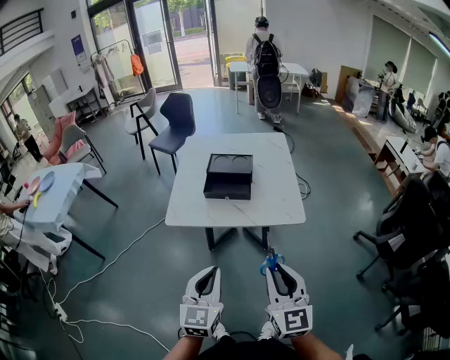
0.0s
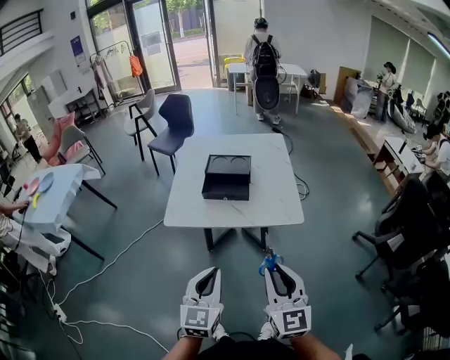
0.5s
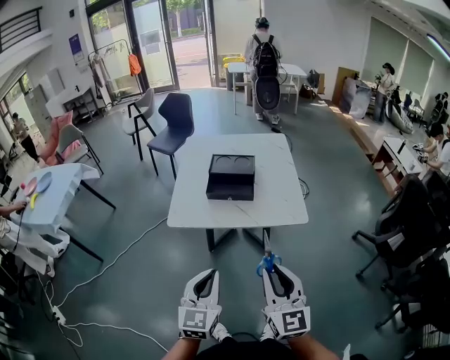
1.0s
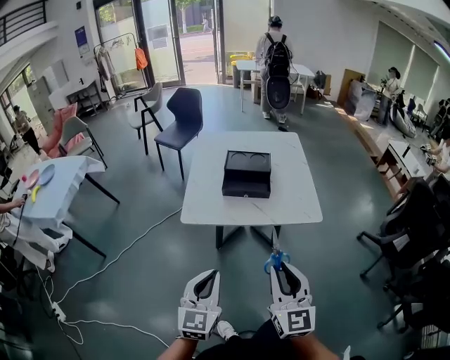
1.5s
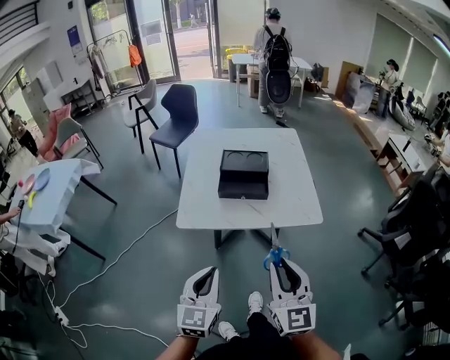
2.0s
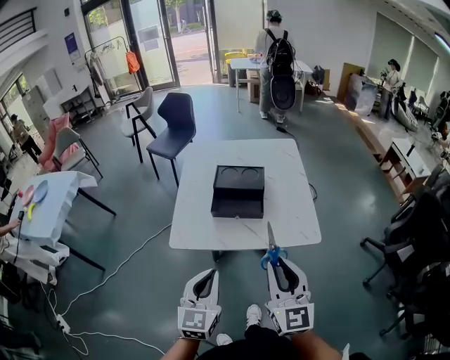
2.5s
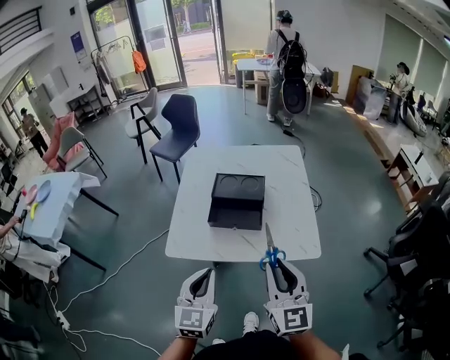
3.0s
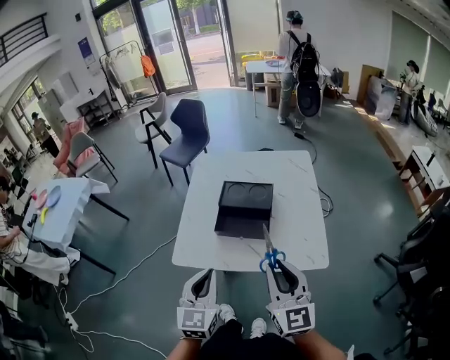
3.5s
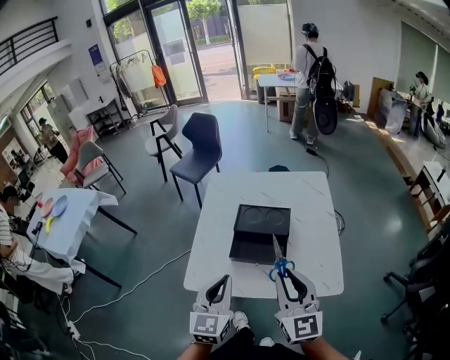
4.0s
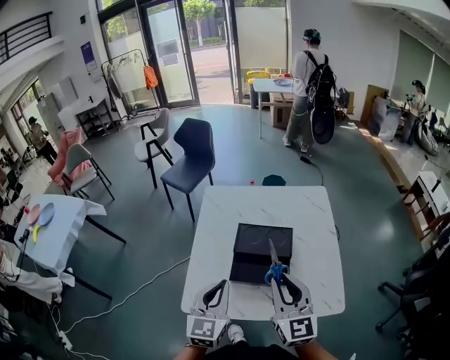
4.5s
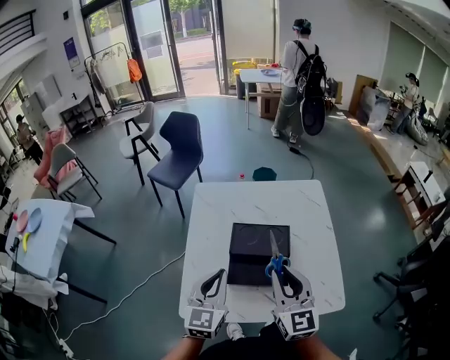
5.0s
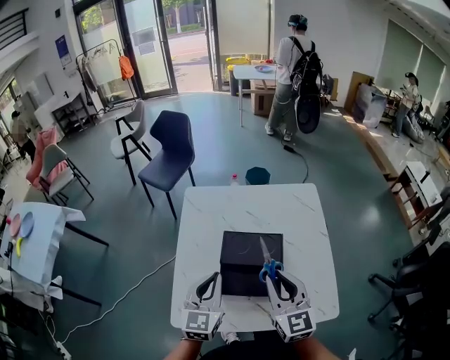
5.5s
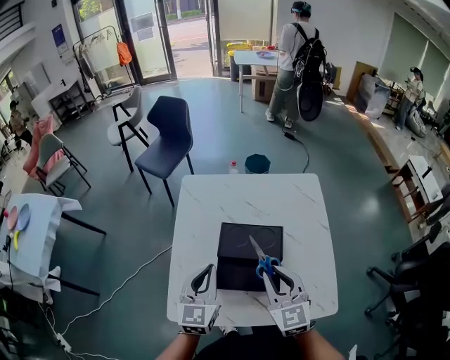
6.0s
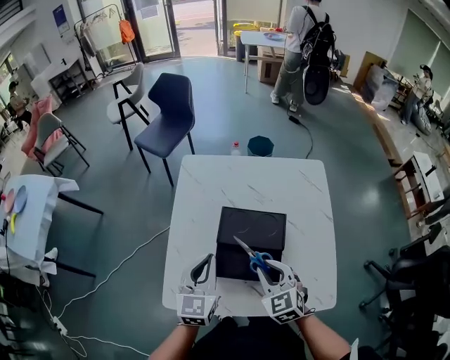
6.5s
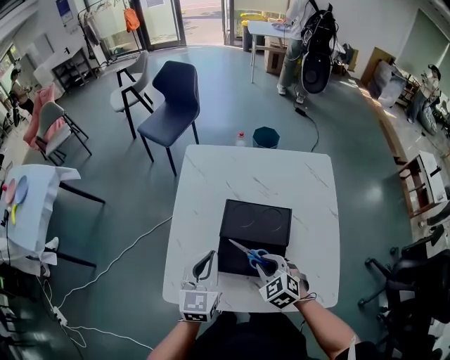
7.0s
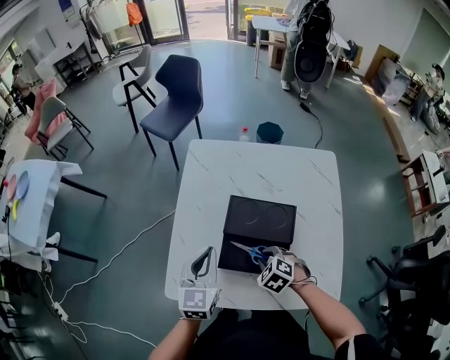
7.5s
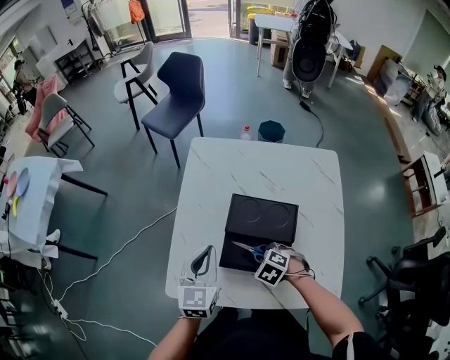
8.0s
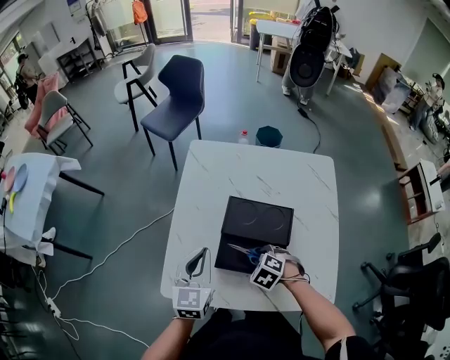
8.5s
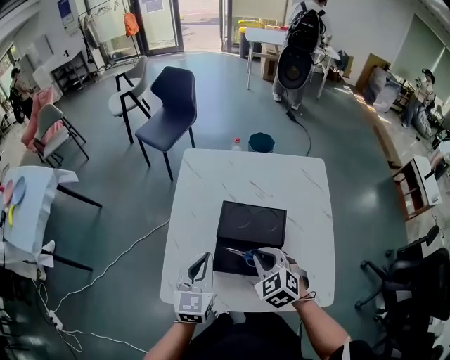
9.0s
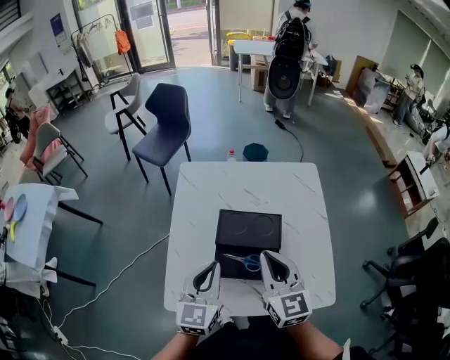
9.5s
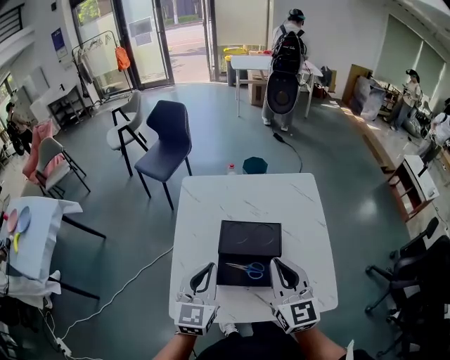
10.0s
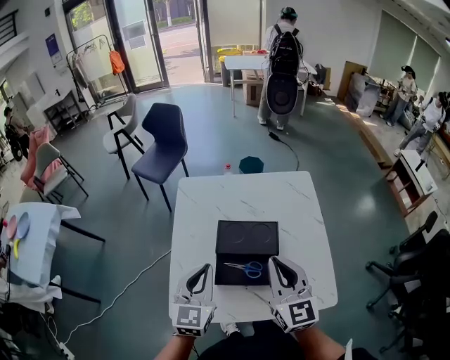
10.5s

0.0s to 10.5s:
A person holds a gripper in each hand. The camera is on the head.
0.0s to 2.0s: The two grippers go about 10 cm to the left.
2.0s to 4.0s: Both grippers move forward, about 25 cm.
4.0s to 6.5s: The left gripper is displaced forward by roughly 20 cm, while the right gripper moves forward and downward, about 25 cm, and tips its fingers downward by some 40 degrees.
6.5s to 8.5s: The right gripper heads downward, covering about 15 cm, and tips its fingers downward by roughly 40 degrees.
8.5s to 10.5s: The right gripper moves upward, about 30 cm, tilts its fingers about 70 degrees upward, and closes its fingers; the left gripper travels upward by roughly 10 cm.

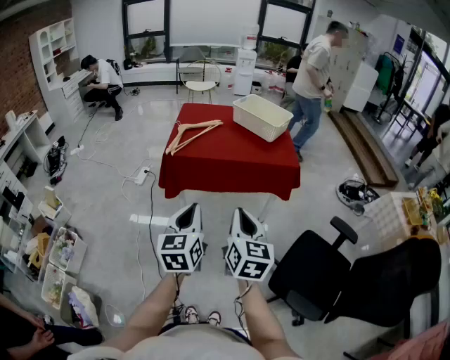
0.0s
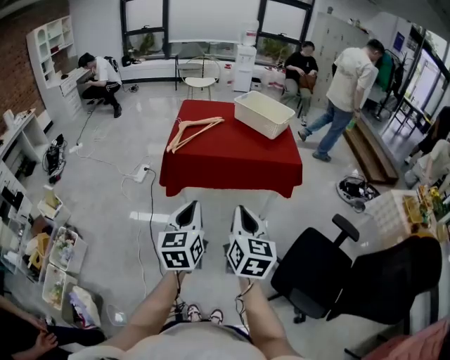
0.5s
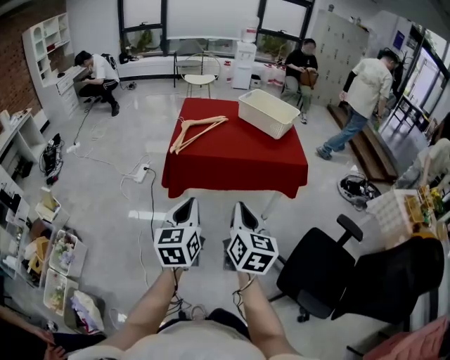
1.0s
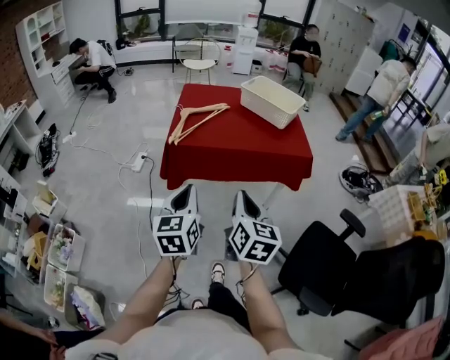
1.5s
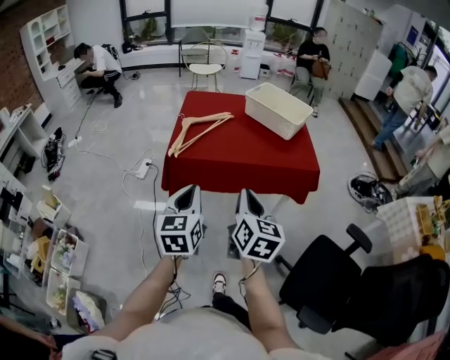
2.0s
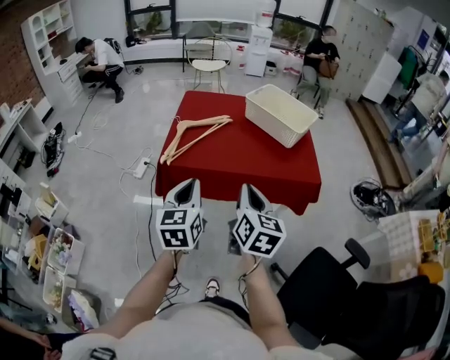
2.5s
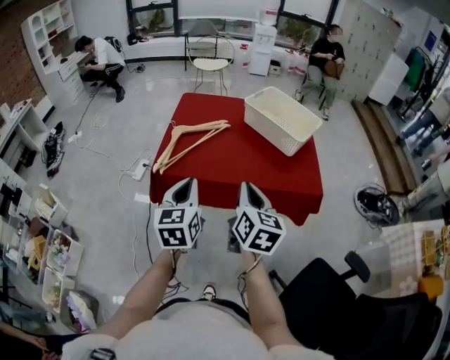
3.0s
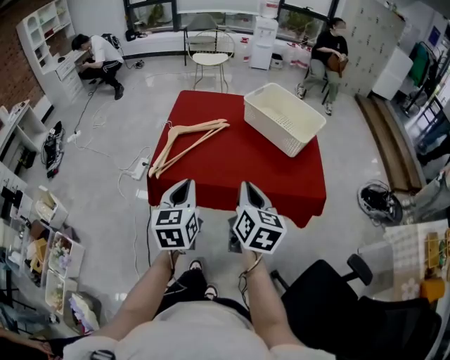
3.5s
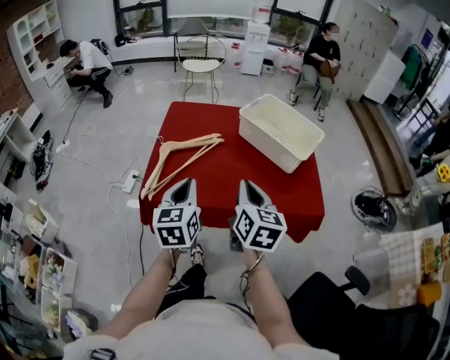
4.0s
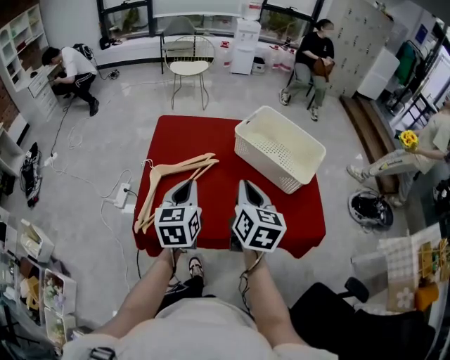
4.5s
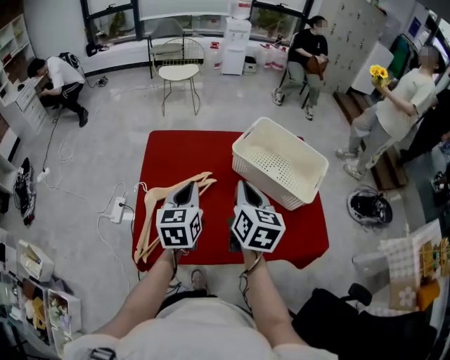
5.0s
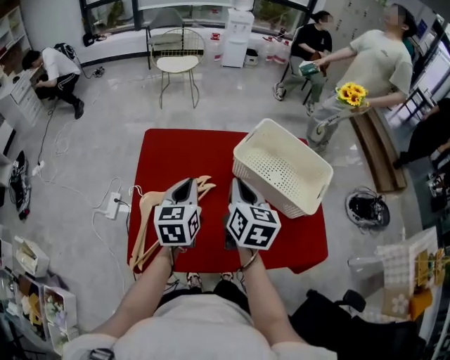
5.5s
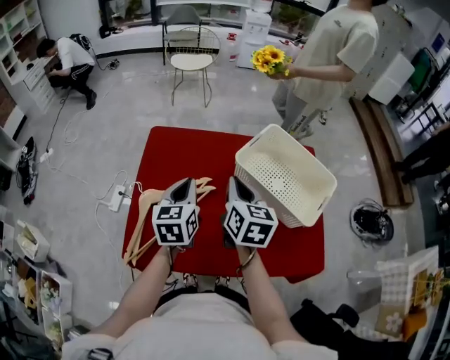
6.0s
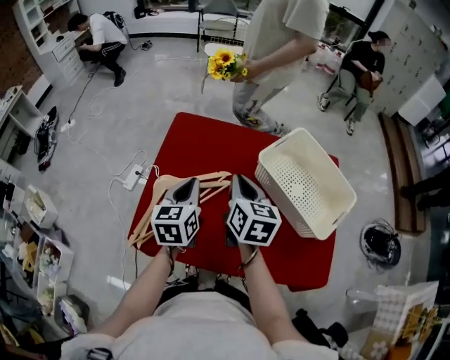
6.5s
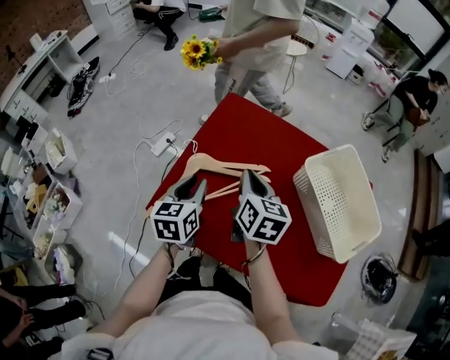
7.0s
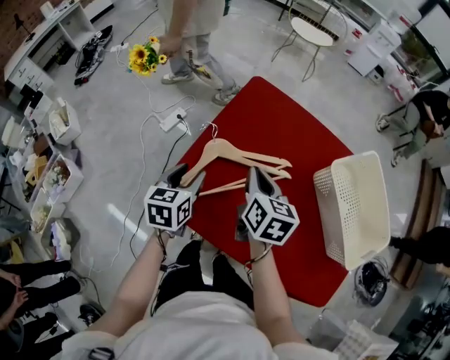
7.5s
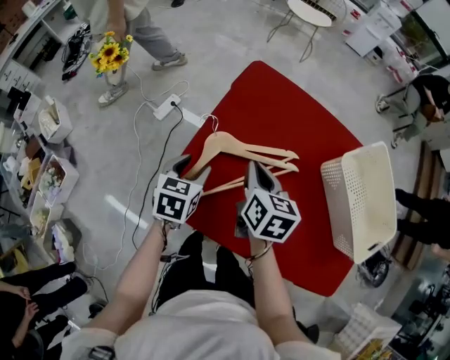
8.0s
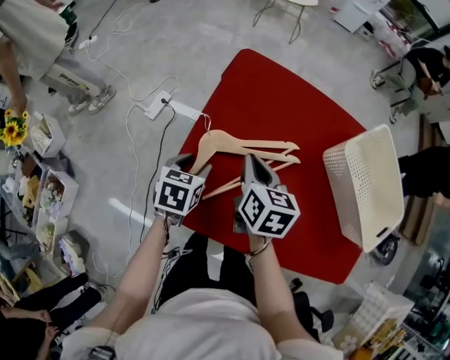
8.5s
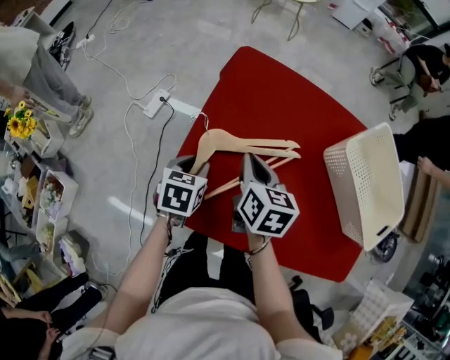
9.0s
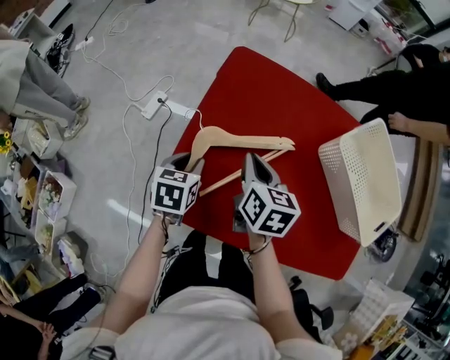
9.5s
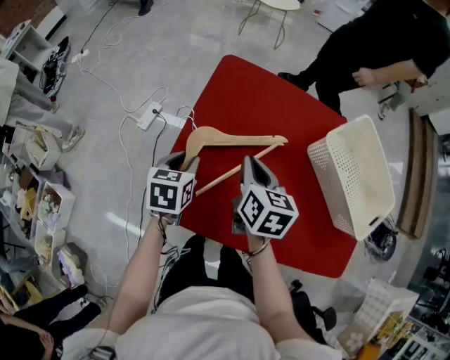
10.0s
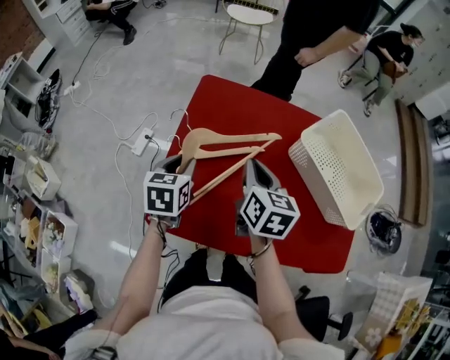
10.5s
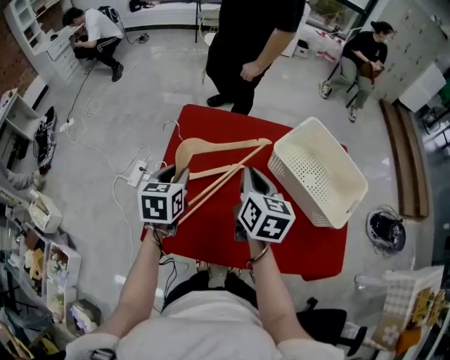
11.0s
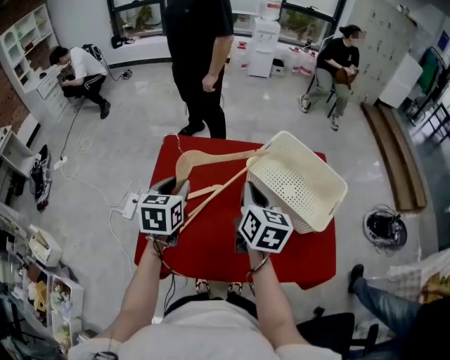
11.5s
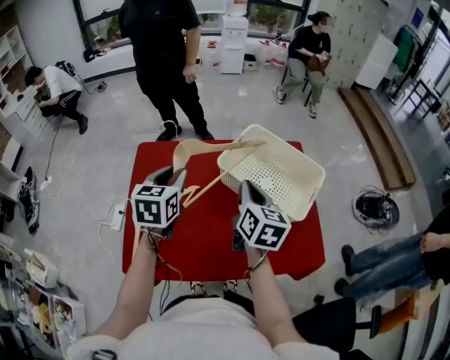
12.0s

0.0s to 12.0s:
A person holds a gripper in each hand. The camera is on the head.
0.0s to 2.0s: Both grippers travel together forward, approximately 20 cm.
2.0s to 4.0s: The two grippers go approximately 30 cm forward.
4.0s to 6.0s: The grippers both shift forward by about 30 cm.
6.0s to 8.0s: Both grippers move to the left and downward, some 25 cm. The left gripper swivels roughly 20 degrees, and opens up, while the right gripper swivels some 30 degrees.
8.0s to 10.0s: The left gripper closes its fingers.
10.0s to 12.0s: The two grippers go roughly 30 cm to the right and upward. The left gripper swivels roughly 30 degrees. The right gripper rotates about 30 degrees.

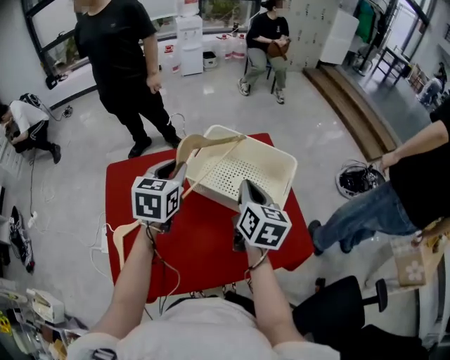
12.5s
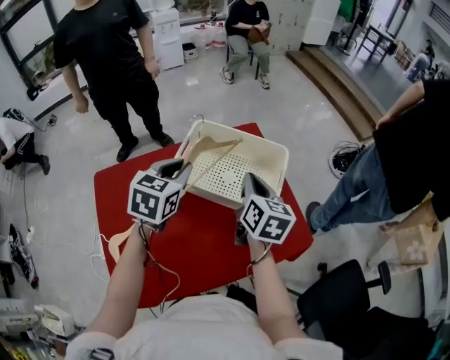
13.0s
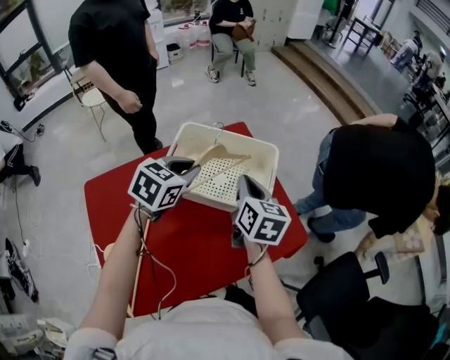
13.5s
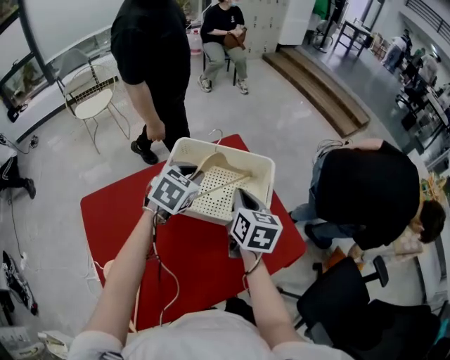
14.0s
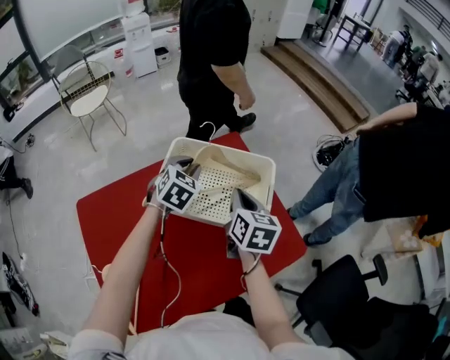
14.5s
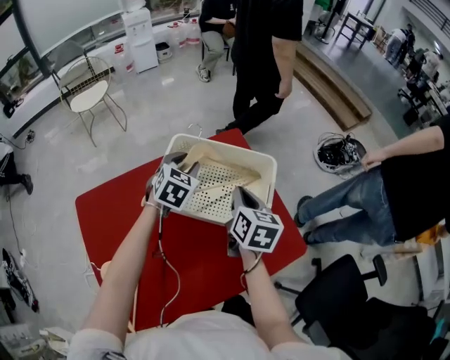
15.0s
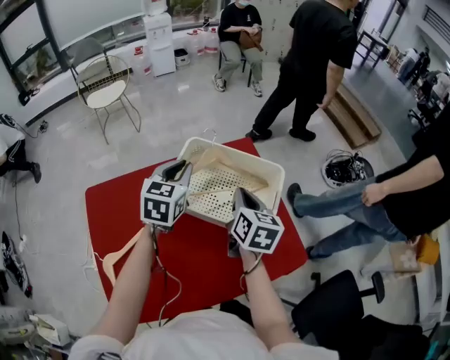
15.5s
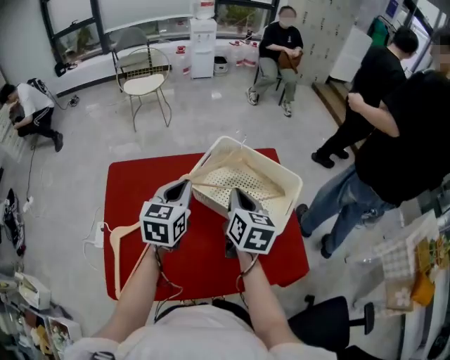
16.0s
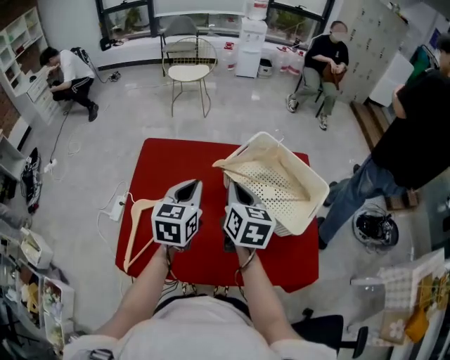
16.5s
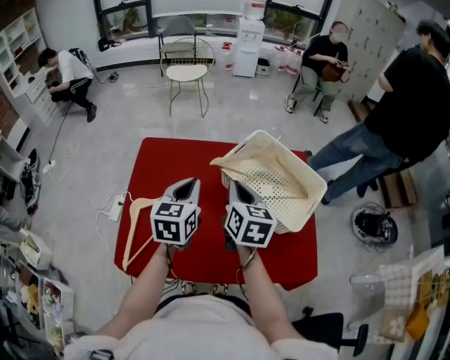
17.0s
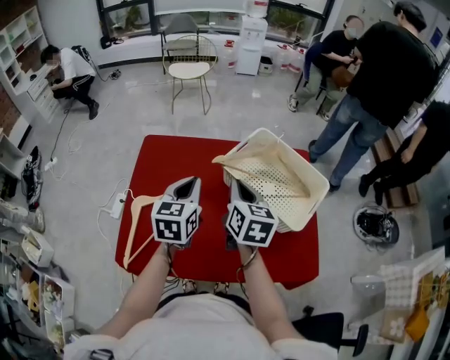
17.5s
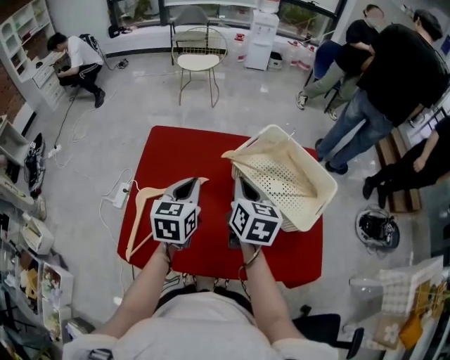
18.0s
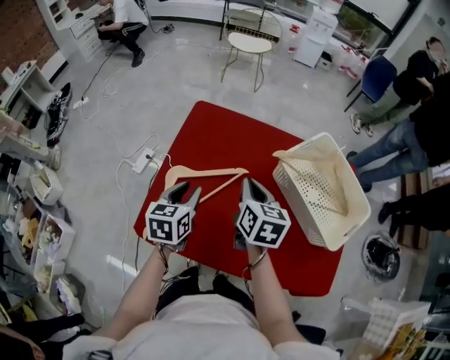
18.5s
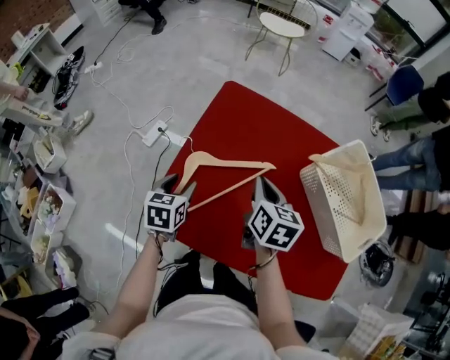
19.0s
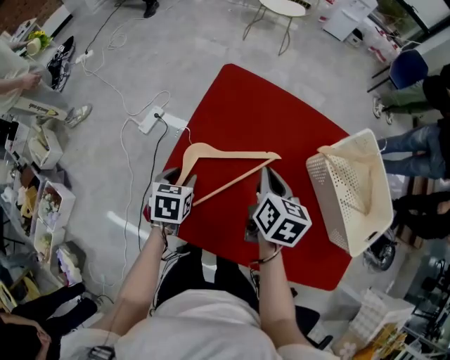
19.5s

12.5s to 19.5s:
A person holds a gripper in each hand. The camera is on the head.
12.5s to 14.5s: The left gripper goes roughly 25 cm forward, to the right and downward, and changes its angle by approximately 40 degrees, while the right gripper shifts approximately 10 cm forward and downward.
14.5s to 16.0s: The left gripper heads backward, to the left and upward, covering about 20 cm, and swivels some 40 degrees. Meanwhile the right gripper is displaced to the left by some 10 cm.
16.0s to 17.5s: The right gripper shifts about 10 cm to the left; the left gripper goes some 10 cm to the left and backward.
17.5s to 19.5s: The left gripper is displaced to the left and downward by about 35 cm, points its fingers some 30 degrees further downward, and opens its fingers. Meanwhile the right gripper is displaced to the left and downward by roughly 20 cm.
